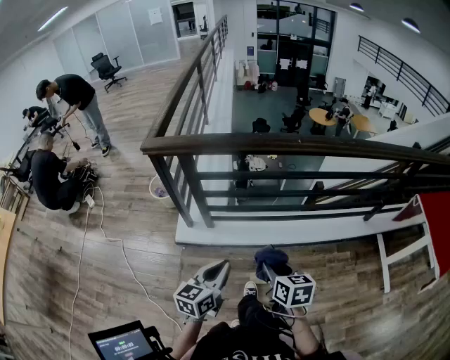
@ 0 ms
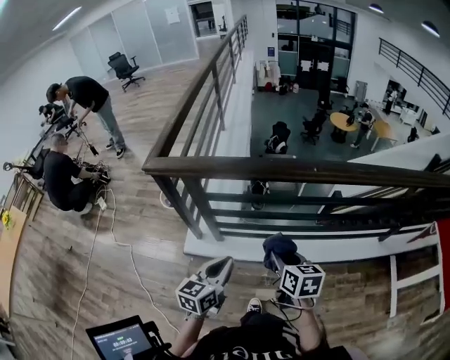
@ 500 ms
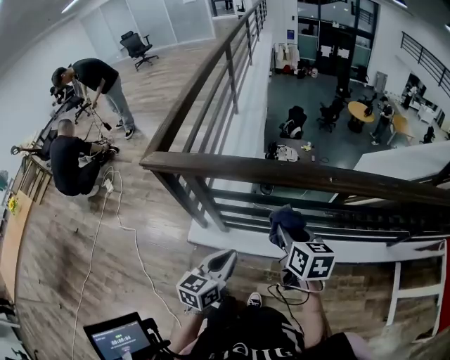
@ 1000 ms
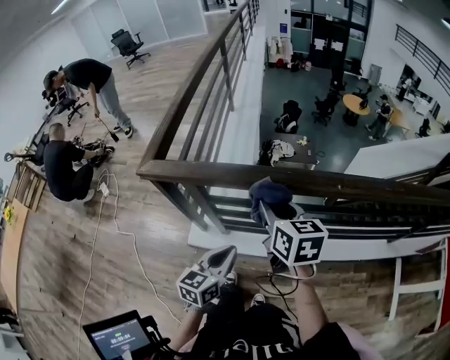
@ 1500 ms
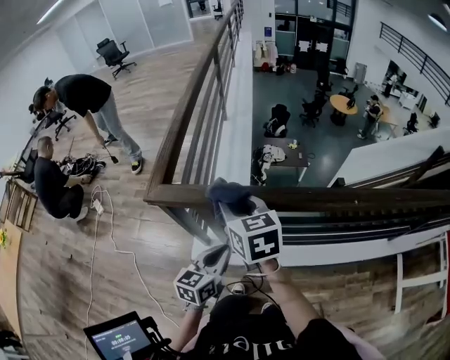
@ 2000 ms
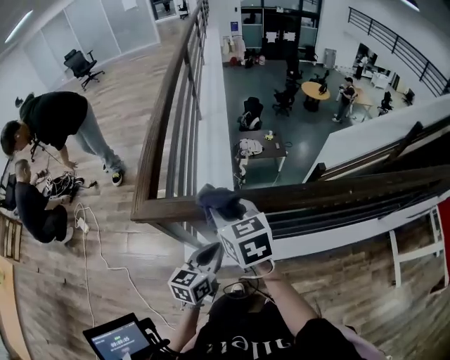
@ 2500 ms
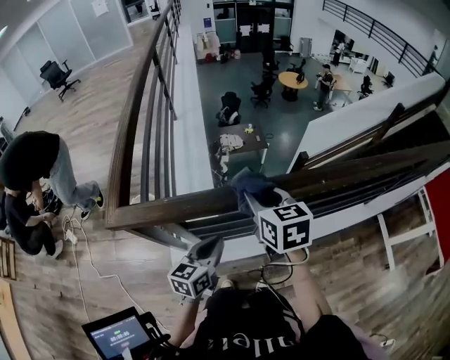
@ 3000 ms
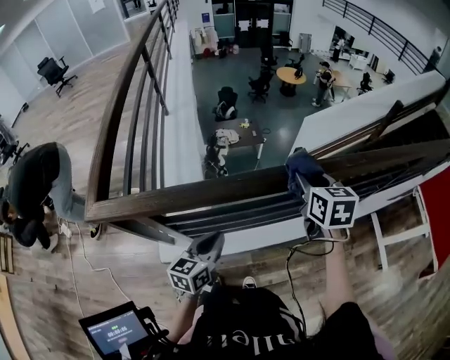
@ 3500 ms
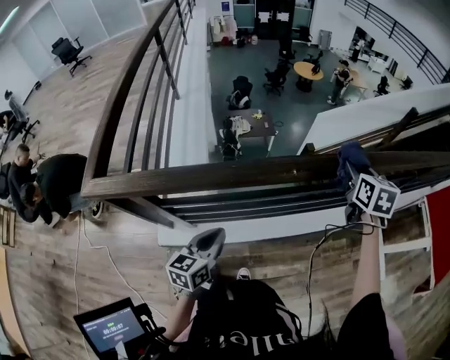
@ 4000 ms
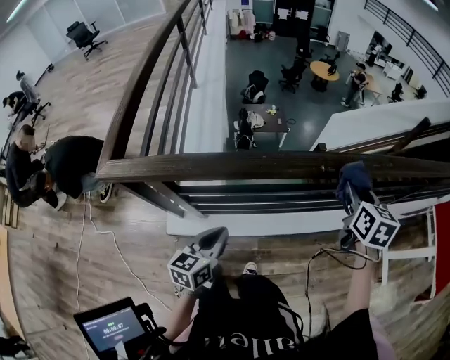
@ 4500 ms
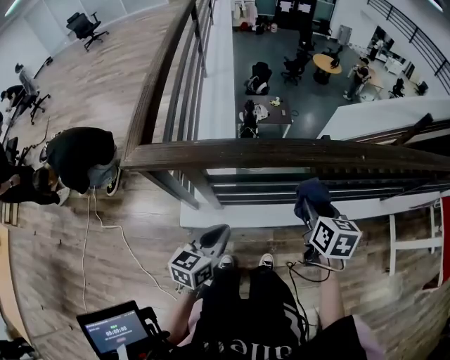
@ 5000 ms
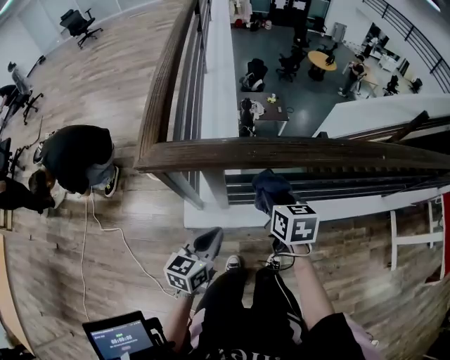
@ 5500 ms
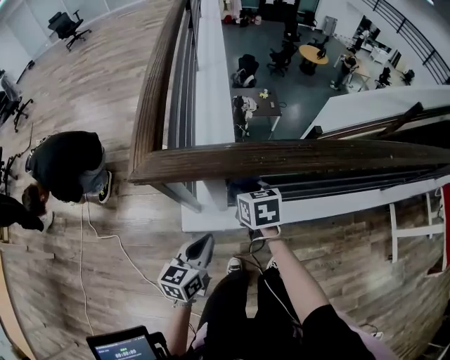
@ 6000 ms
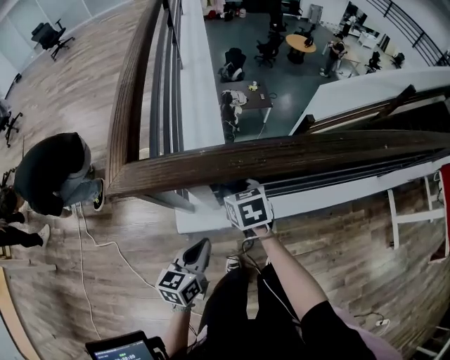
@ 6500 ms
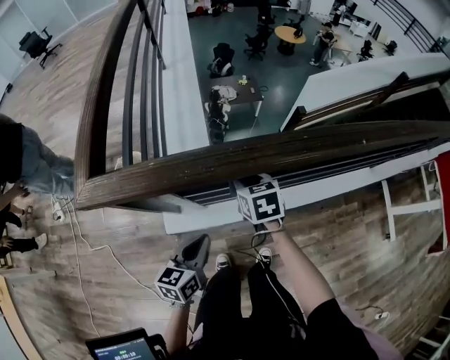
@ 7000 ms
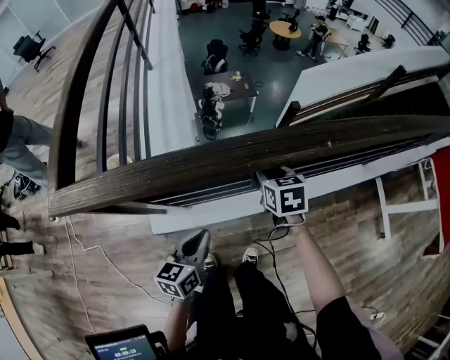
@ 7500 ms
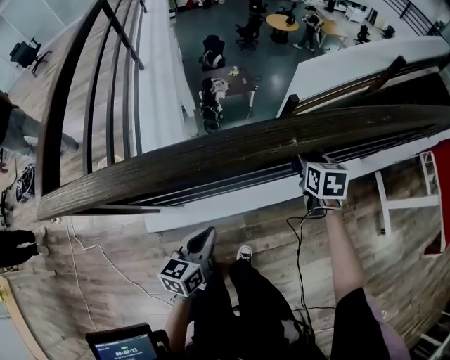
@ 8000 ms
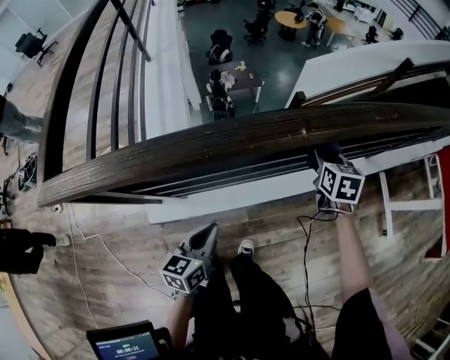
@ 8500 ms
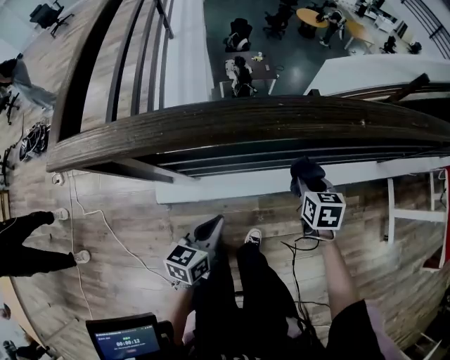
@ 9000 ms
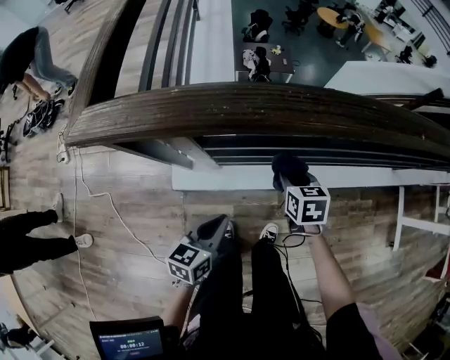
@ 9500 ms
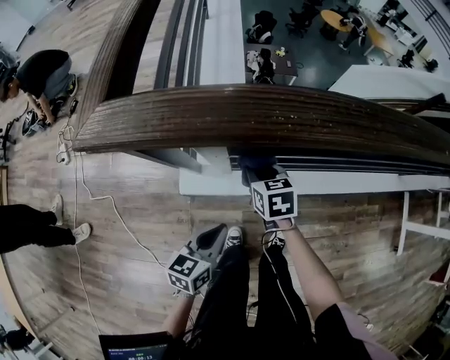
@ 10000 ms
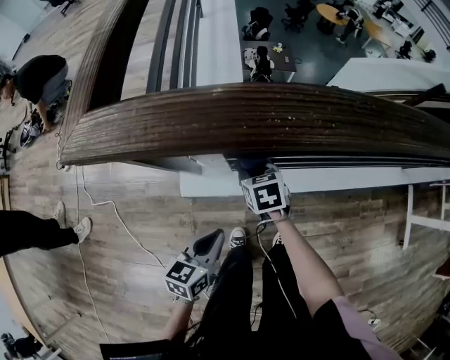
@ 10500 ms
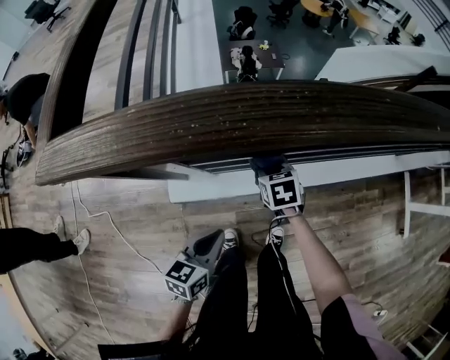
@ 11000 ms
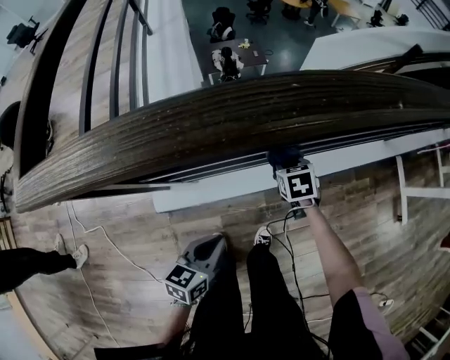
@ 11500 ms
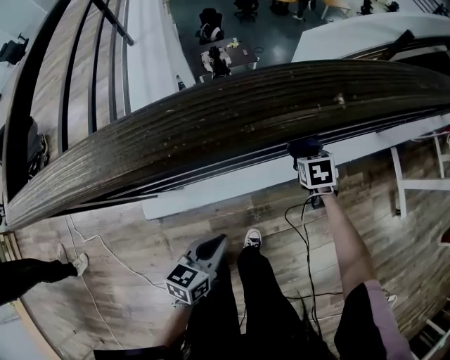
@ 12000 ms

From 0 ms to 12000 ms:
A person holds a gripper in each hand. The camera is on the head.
From 0 ms to 2000 ms: The left gripper is displaced forward by roughly 35 cm. The right gripper moves forward and to the left, approximately 50 cm, and turns by about 20 degrees.
From 2000 ms to 4000 ms: The right gripper changes place by some 60 cm, and changes its angle by approximately 40 degrees. Meanwhile the left gripper moves about 20 cm.
From 4000 ms to 6000 ms: The left gripper shifts approximately 30 cm to the left; the right gripper goes roughly 60 cm to the left, and changes its angle by about 30 degrees.
From 6000 ms to 8000 ms: The right gripper moves to the right, roughly 50 cm, and turns by approximately 20 degrees, while the left gripper moves to the right, approximately 30 cm.
From 8000 ms to 10000 ms: The right gripper moves to the left, about 50 cm, and turns by some 30 degrees. Meanwhile the left gripper moves to the left and backward, some 30 cm.
From 10000 ms to 12000 ms: The right gripper changes place by approximately 50 cm, and swivels approximately 30 degrees, while the left gripper moves approximately 30 cm.

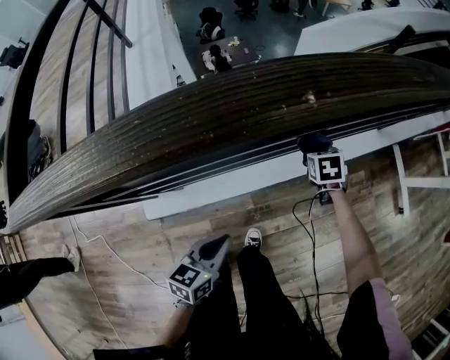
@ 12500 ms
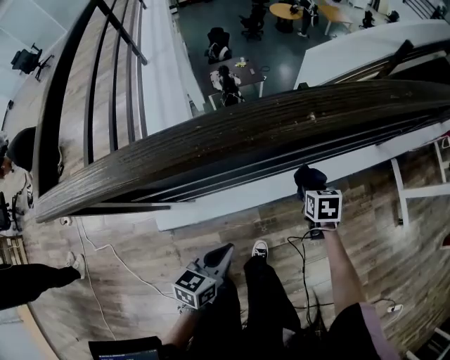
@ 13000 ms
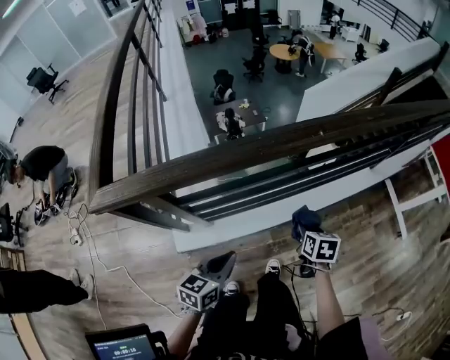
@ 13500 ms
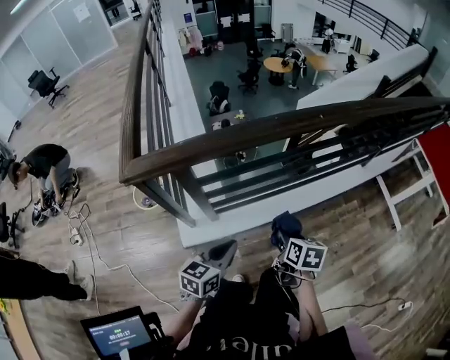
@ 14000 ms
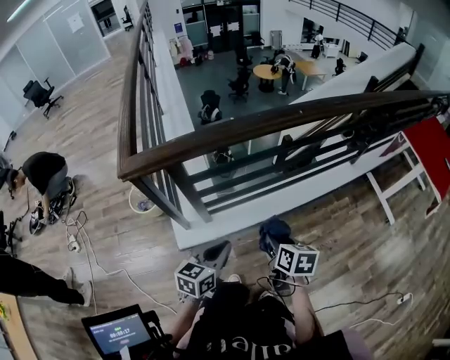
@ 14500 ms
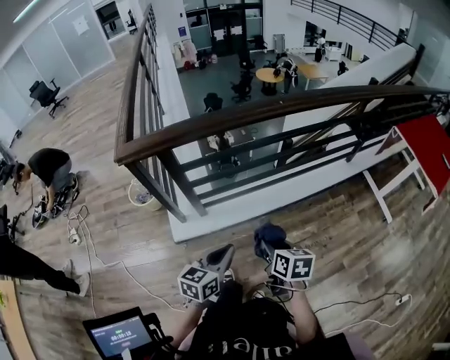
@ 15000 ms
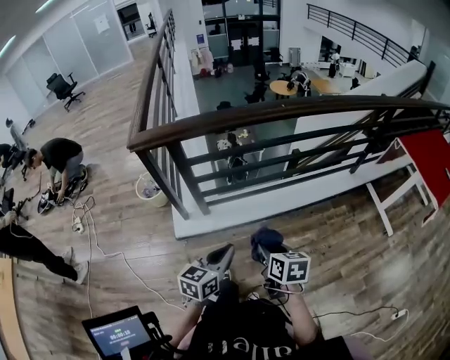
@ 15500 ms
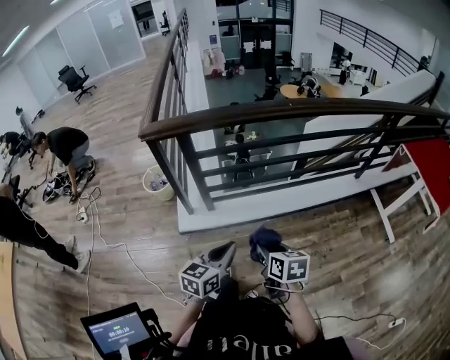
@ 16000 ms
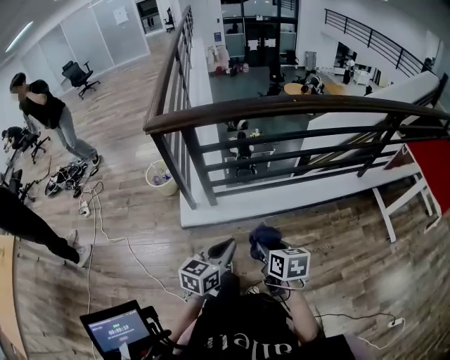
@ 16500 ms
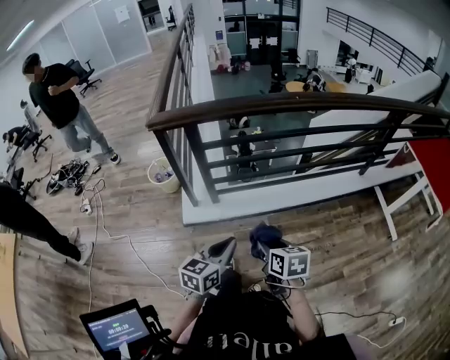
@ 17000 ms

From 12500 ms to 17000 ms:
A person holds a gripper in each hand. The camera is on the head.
From 12500 ms to 14500 ms: The right gripper travels backward, upward and to the left by about 60 cm, and swivels approximately 40 degrees. The left gripper travels backward, upward and to the left by about 35 cm.
From 14500 ms to 17000 ms: The left gripper moves backward and to the right, some 20 cm, while the right gripper travels backward by some 20 cm, and changes its angle by approximately 20 degrees.

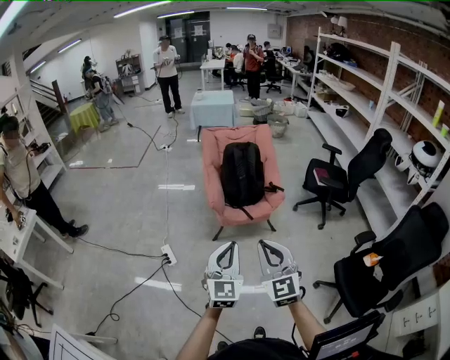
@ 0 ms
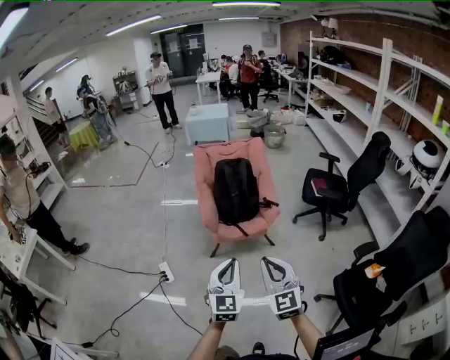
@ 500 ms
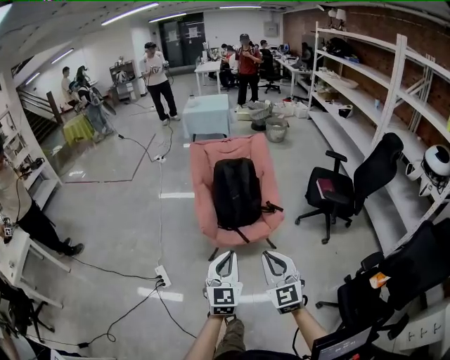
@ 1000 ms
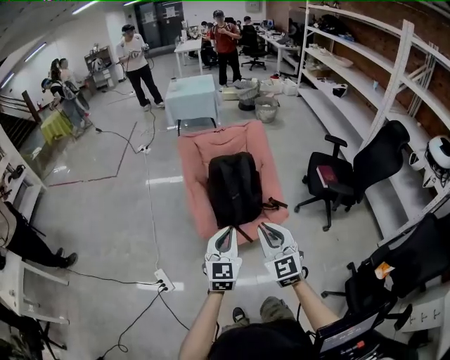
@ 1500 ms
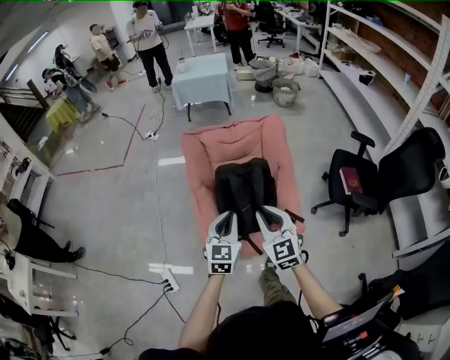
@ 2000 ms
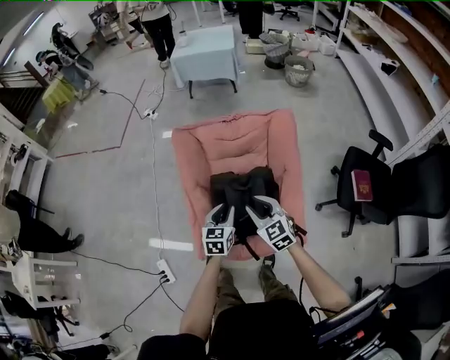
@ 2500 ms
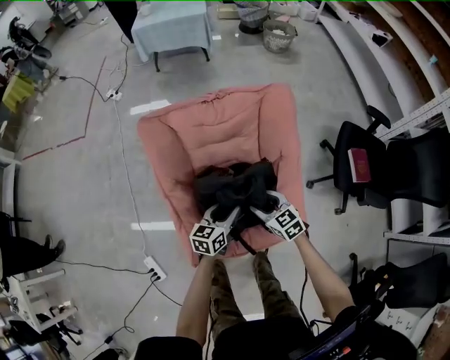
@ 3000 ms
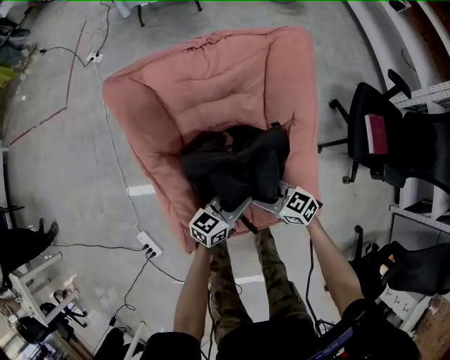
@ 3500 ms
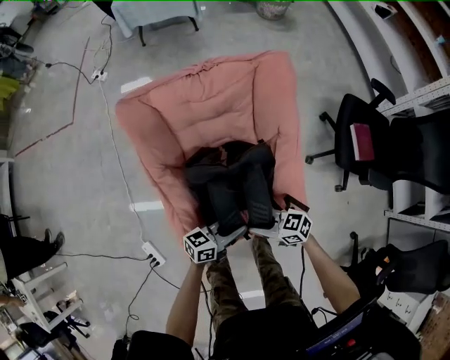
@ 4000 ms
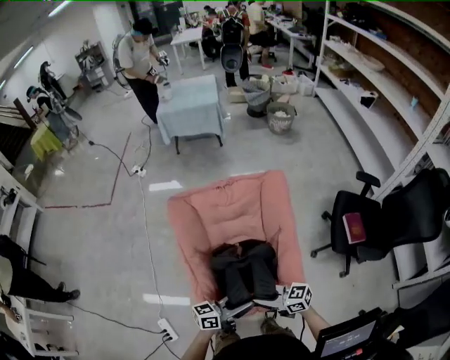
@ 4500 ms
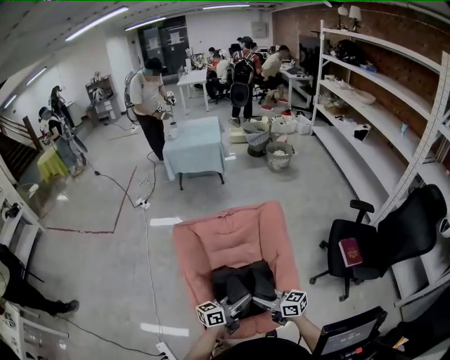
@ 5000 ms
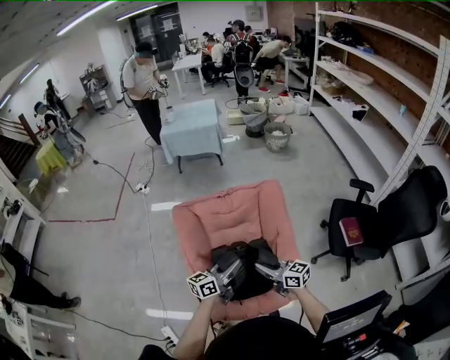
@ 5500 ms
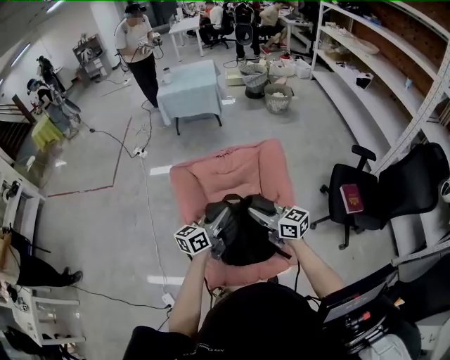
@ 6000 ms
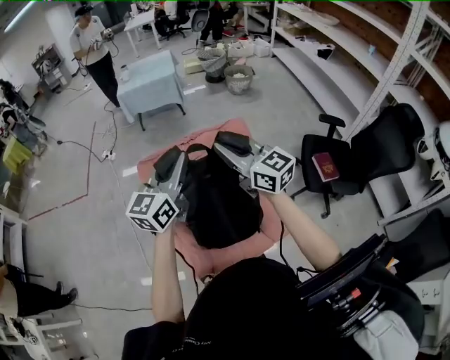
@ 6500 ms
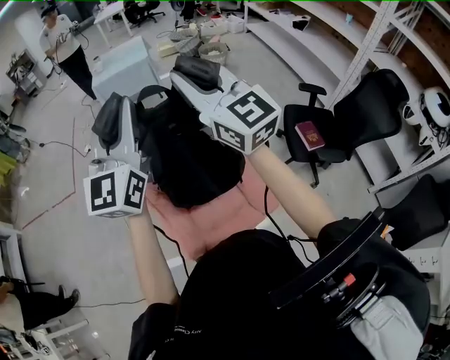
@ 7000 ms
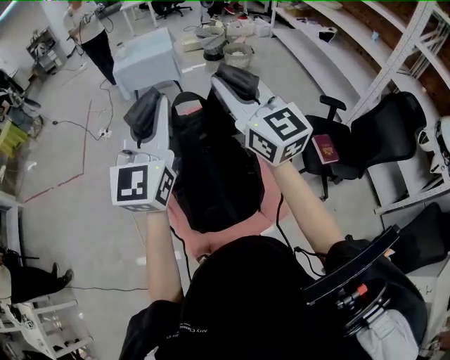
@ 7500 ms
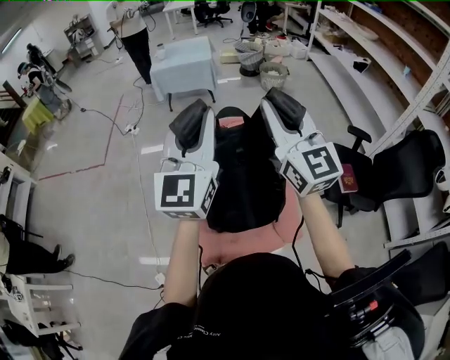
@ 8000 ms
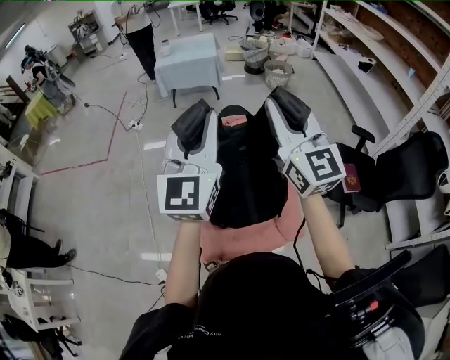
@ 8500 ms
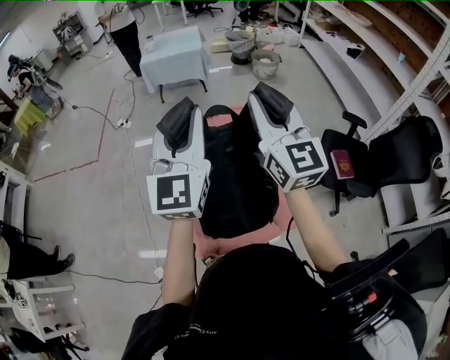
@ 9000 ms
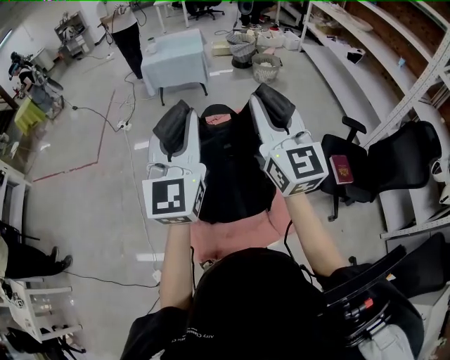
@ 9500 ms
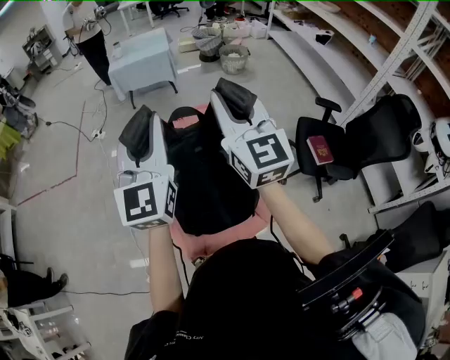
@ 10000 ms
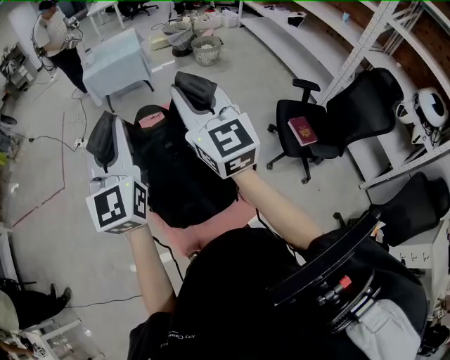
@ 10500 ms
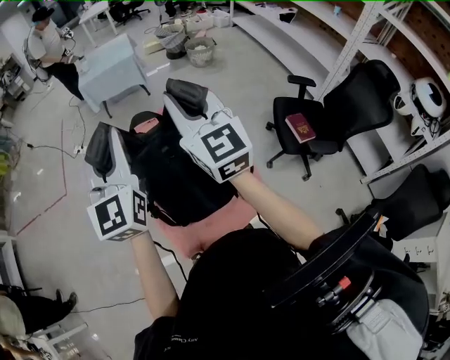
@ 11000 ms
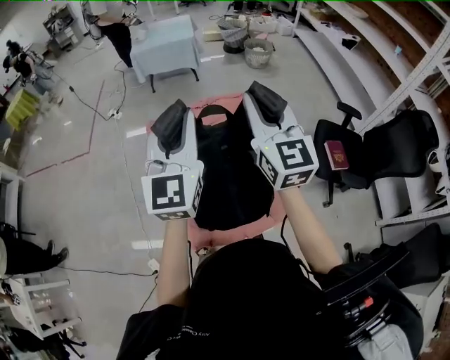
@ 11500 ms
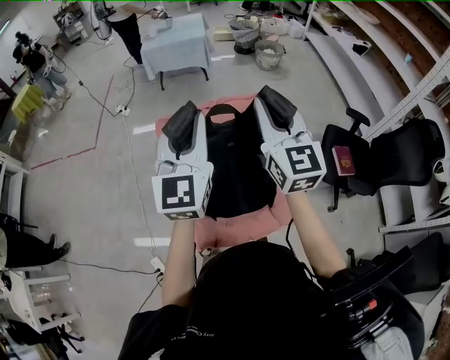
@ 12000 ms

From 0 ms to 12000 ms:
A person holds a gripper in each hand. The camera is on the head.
From 0 ms to 2000 ms: Both grippers are carried forward, roughly 70 cm.
From 2000 ms to 4000 ms: The grippers both shift downward by approximately 30 cm. The right gripper rotates approximately 70 degrees, and opens, then closes once more. Meanwhile the left gripper swivels about 70 degrees, and opens, then closes once more.
From 4000 ms to 6000 ms: The two grippers go about 30 cm upward. The left gripper changes its angle by about 30 degrees, and opens and closes again; the right gripper swivels about 40 degrees.
From 6000 ms to 8000 ms: The grippers both shift upward by roughly 30 cm. The left gripper rolls clockwise, seen from behind, by about 40 degrees; the right gripper rotates about 50 degrees.
From 8000 ms to 10000 ms: There are only small adjustments of the grippers.
From 10000 ms to 12000 ms: The grippers move only a little.
